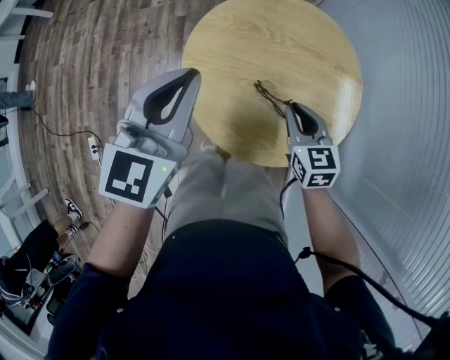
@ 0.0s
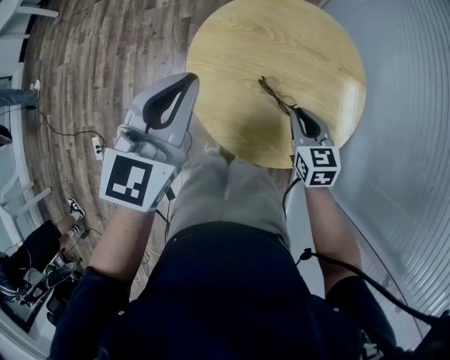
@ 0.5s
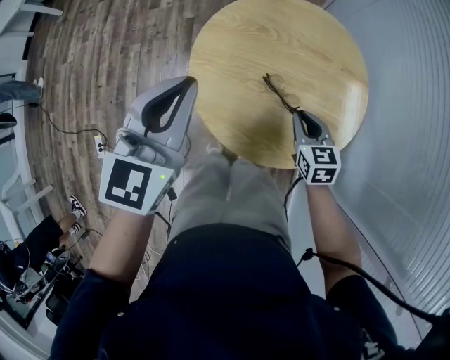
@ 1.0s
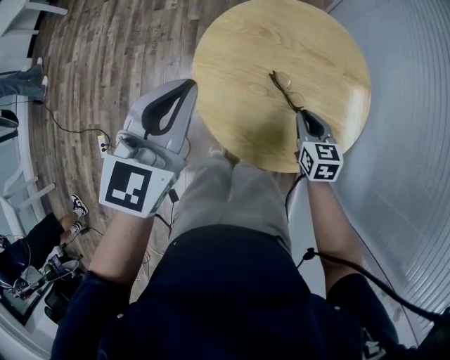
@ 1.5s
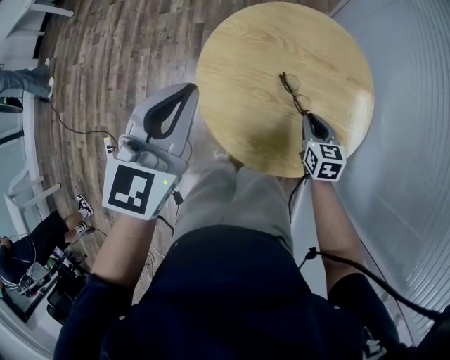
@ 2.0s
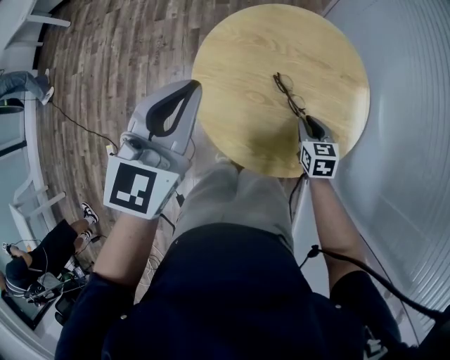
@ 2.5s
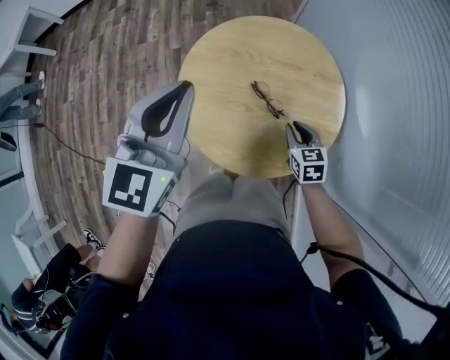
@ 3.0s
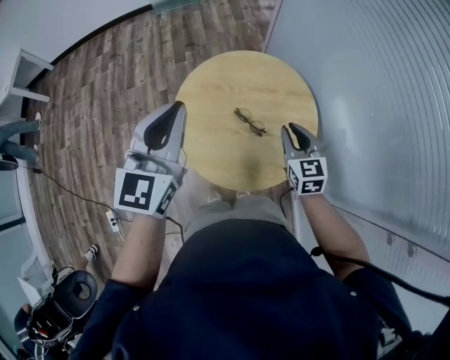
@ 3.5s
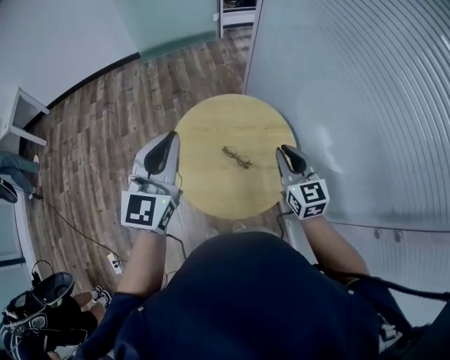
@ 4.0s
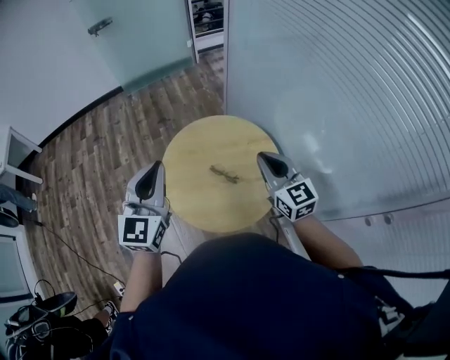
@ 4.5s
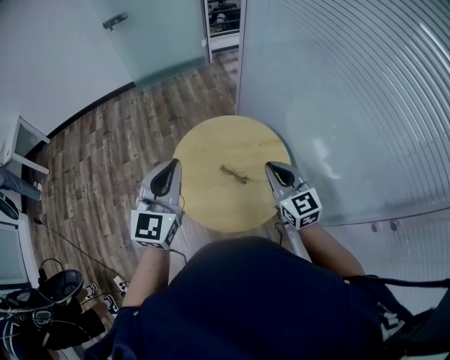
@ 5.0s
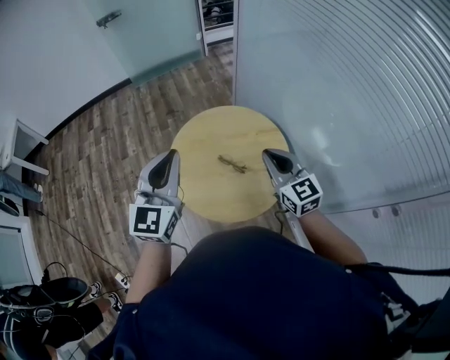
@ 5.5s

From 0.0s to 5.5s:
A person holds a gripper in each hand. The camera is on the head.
From 0.0s to 2.0s: The right gripper is displaced downward by about 15 cm.
From 2.0s to 3.5s: The left gripper shifts some 10 cm upward; the right gripper goes about 20 cm upward, and turns by approximately 20 degrees.
From 3.5s to 5.5s: The left gripper is displaced upward by about 5 cm; the right gripper is displaced upward by some 15 cm.

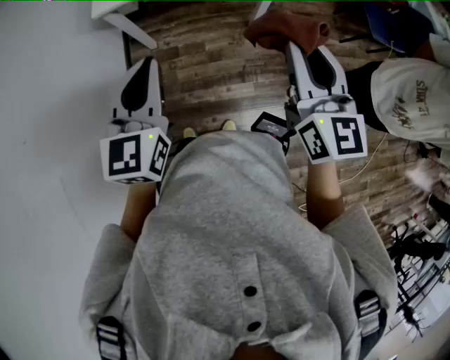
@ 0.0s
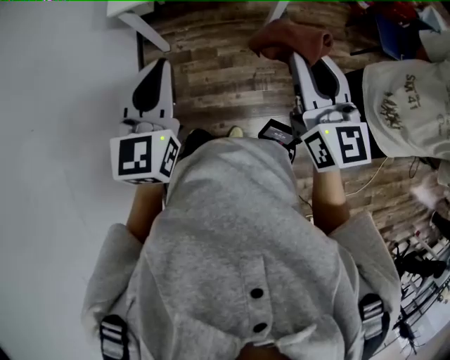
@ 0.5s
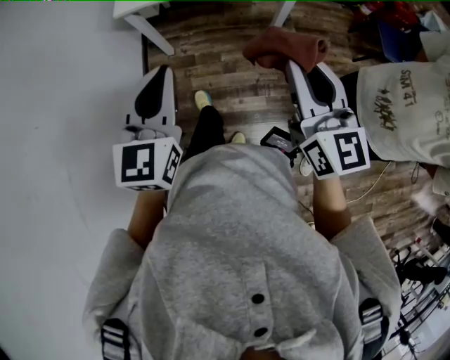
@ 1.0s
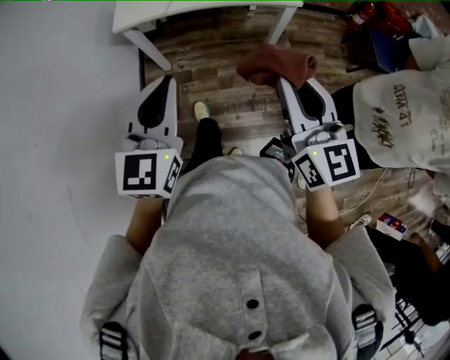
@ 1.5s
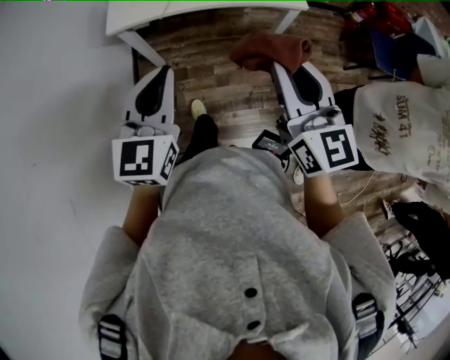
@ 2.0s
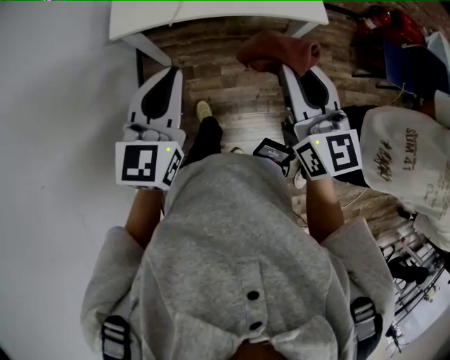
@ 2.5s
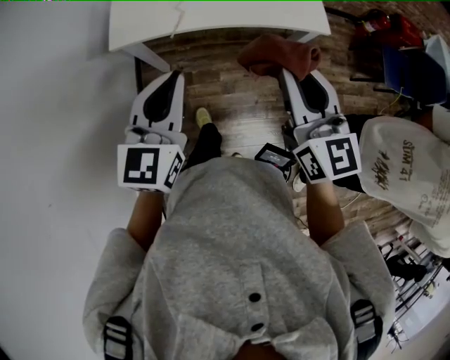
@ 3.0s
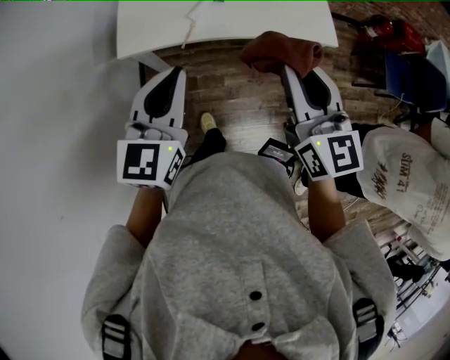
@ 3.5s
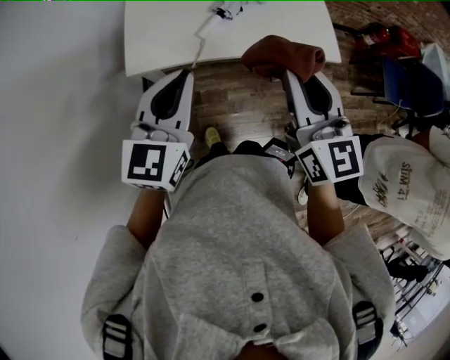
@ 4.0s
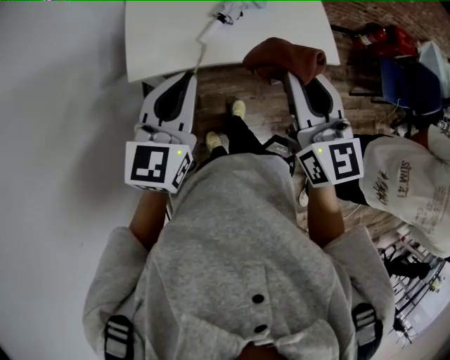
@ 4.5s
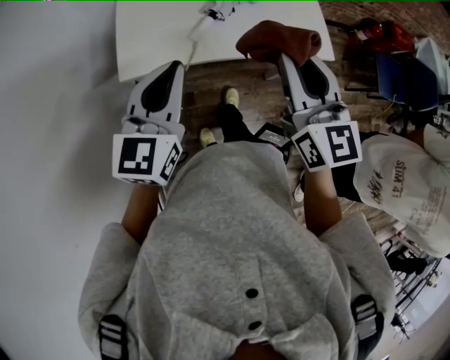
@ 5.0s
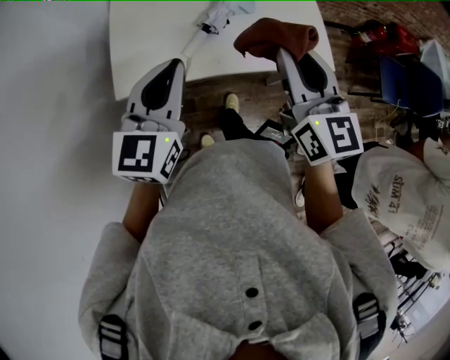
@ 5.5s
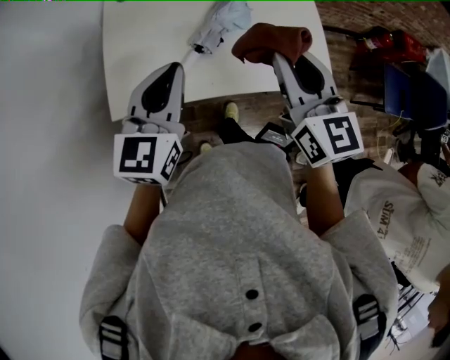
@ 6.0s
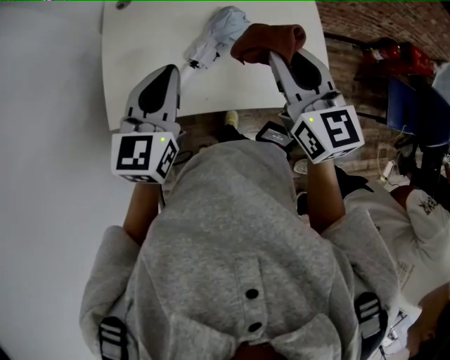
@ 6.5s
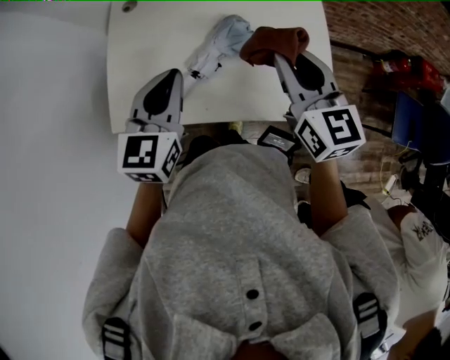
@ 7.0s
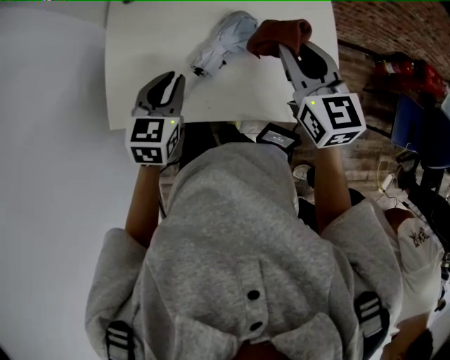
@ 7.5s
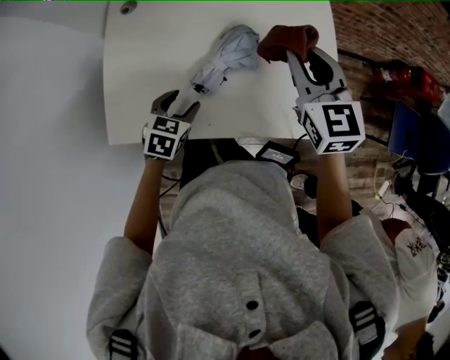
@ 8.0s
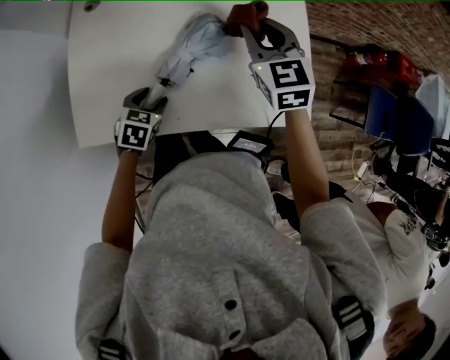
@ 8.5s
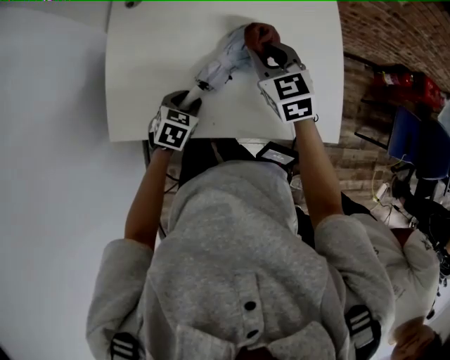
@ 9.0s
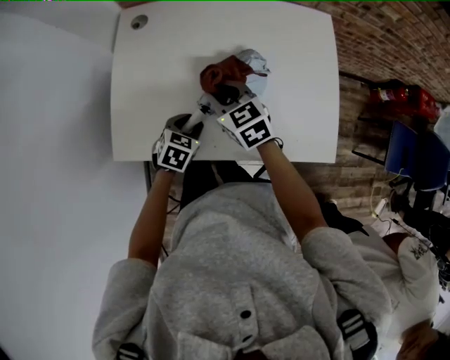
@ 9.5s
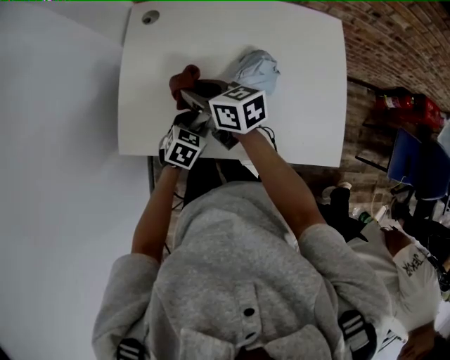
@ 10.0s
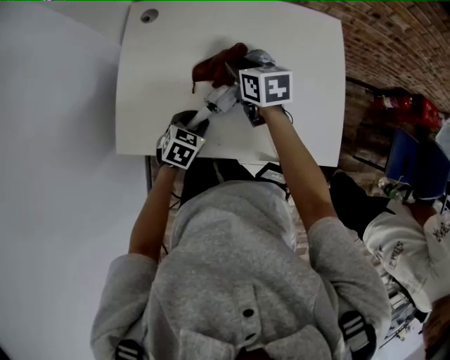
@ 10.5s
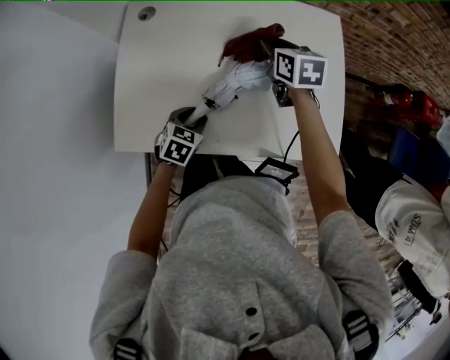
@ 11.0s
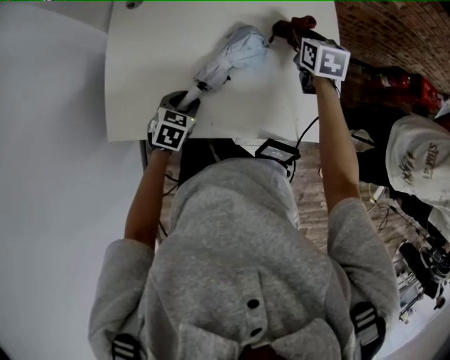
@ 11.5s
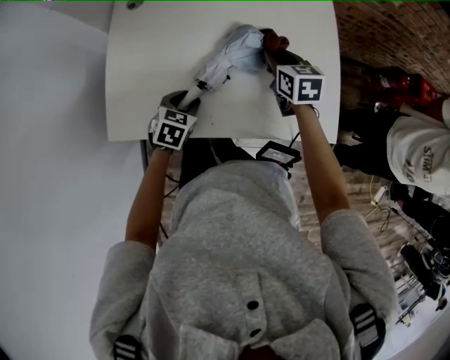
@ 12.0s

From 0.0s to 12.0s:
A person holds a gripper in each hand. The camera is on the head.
From 0.0s to 2.0s: The right gripper moves forward and to the left, approximately 10 cm. Meanwhile the left gripper shifts some 10 cm forward.
From 2.0s to 4.0s: The right gripper heads forward and to the left, covering some 30 cm, while the left gripper is displaced forward by some 25 cm.
From 4.0s to 6.0s: Both grippers move forward, some 20 cm.
From 6.0s to 8.0s: The right gripper is displaced forward and downward by about 20 cm. Meanwhile the left gripper shifts about 25 cm downward, angles its fingers downward, by some 40 degrees, and opens up.
From 8.0s to 10.0s: The right gripper heads to the left and downward, covering approximately 30 cm, and turns by roughly 50 degrees.
From 10.0s to 12.0s: The right gripper changes place by about 25 cm, and changes its angle by roughly 40 degrees.

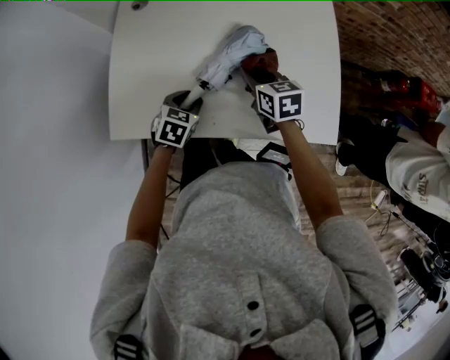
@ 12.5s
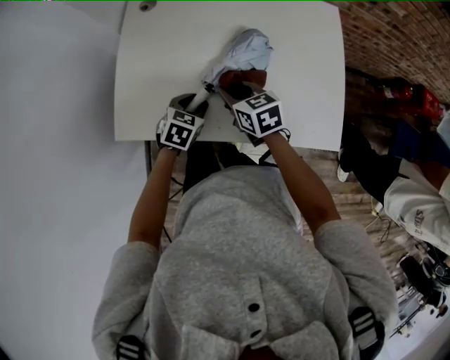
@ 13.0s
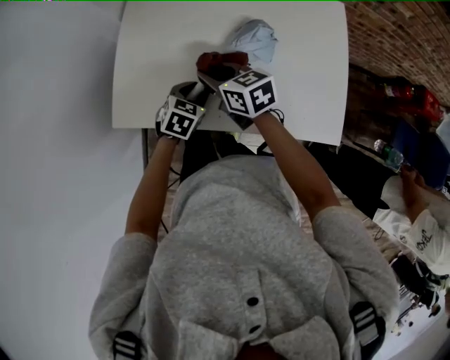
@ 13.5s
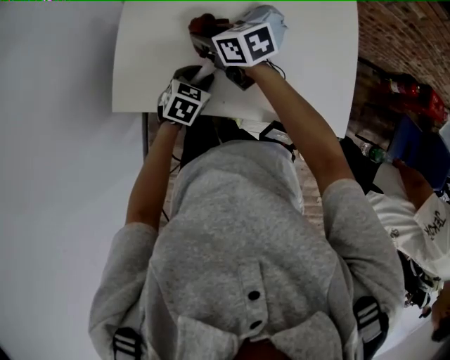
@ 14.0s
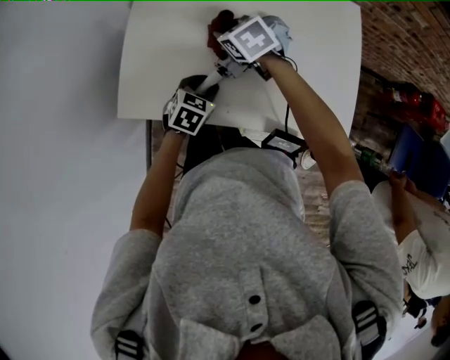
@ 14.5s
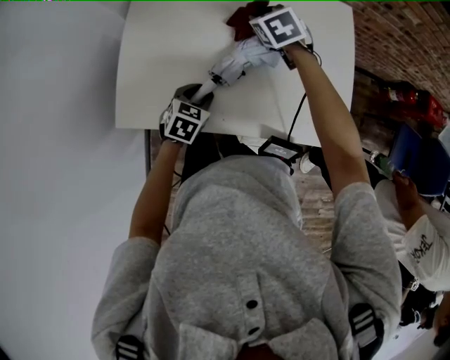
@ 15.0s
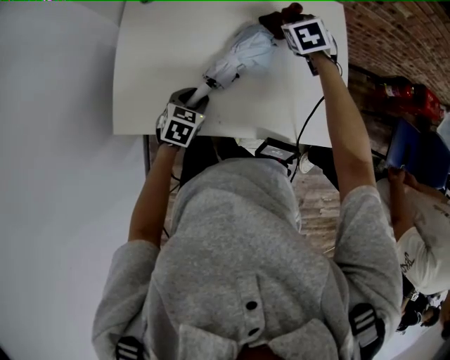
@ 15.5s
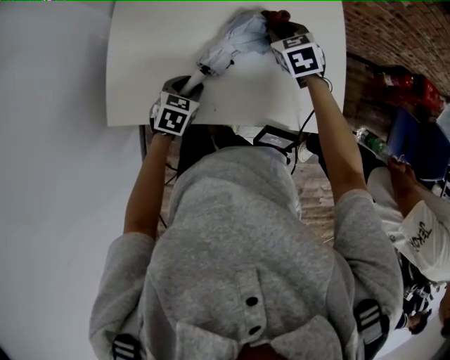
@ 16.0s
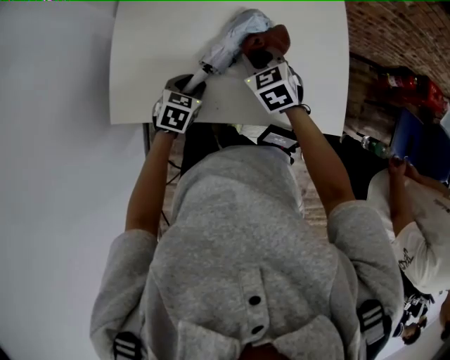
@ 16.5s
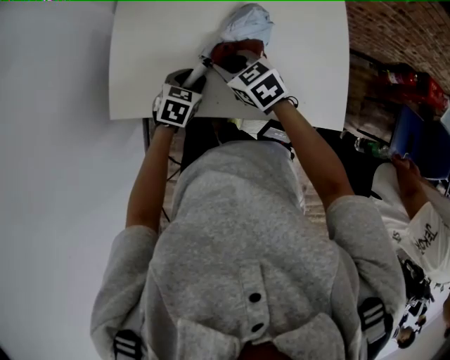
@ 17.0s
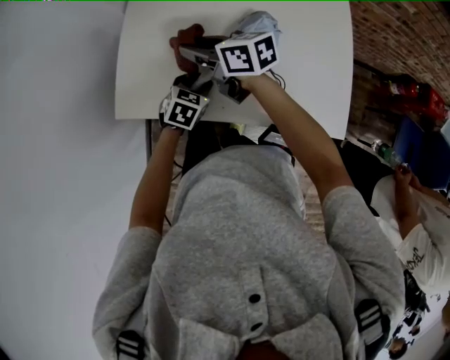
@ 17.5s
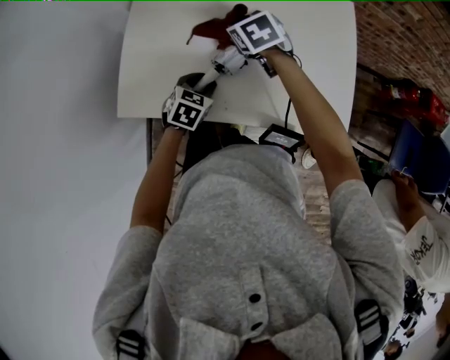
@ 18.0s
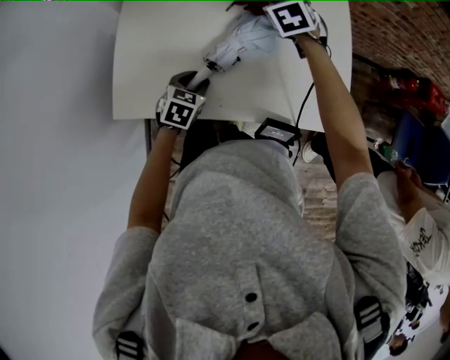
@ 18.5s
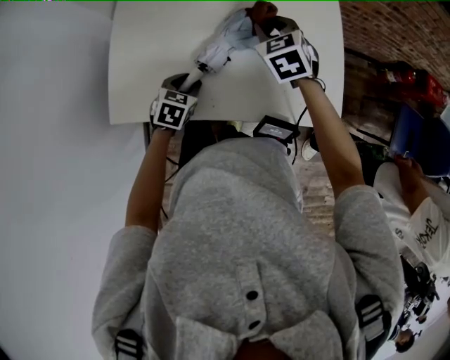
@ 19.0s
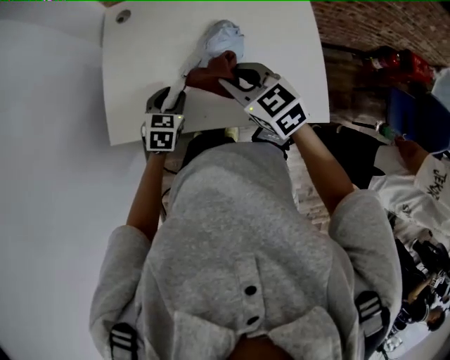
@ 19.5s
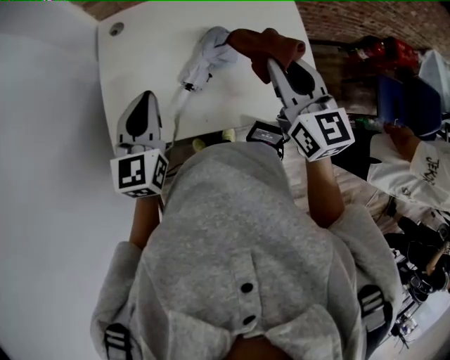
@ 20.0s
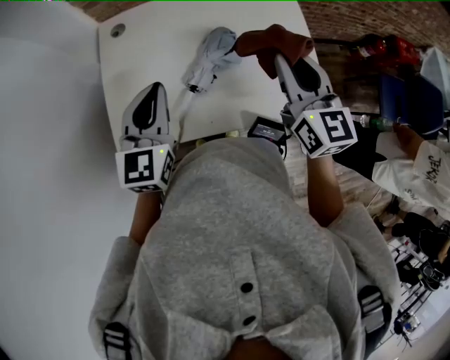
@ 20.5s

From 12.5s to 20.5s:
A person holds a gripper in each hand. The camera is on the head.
From 12.5s to 14.5s: The right gripper goes roughly 15 cm to the left and forward, and changes its angle by approximately 30 degrees.
From 14.5s to 16.5s: The right gripper heads to the right and backward, covering approximately 15 cm.
From 16.5s to 18.5s: The right gripper shifts by some 15 cm.
From 18.5s to 20.5s: The right gripper heads backward and upward, covering roughly 30 cm, and tilts its fingers roughly 40 degrees upward, while the left gripper heads upward, covering some 30 cm, tips its fingers upward by roughly 40 degrees, and closes its fingers.

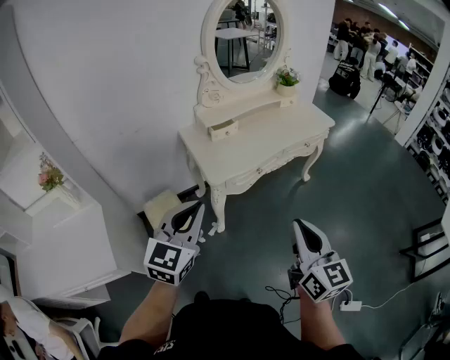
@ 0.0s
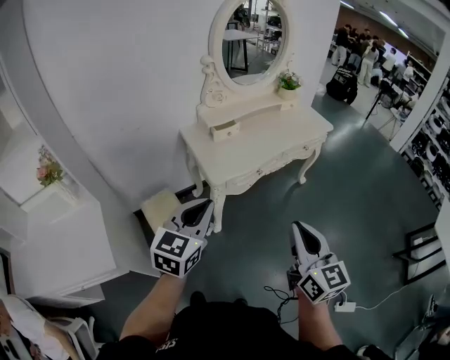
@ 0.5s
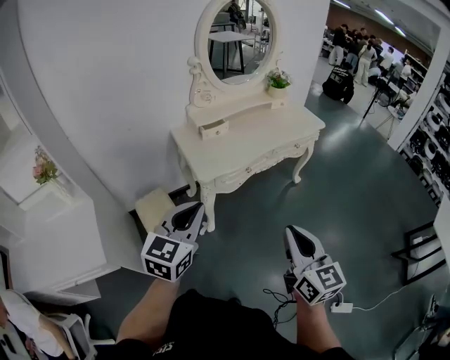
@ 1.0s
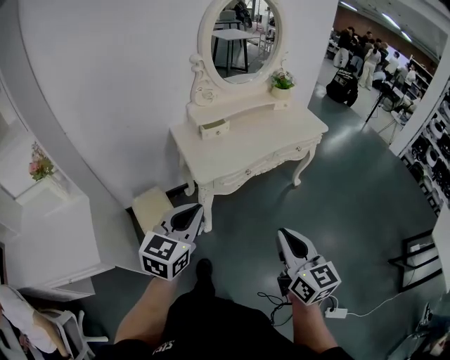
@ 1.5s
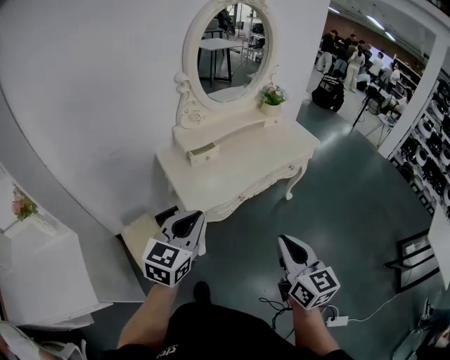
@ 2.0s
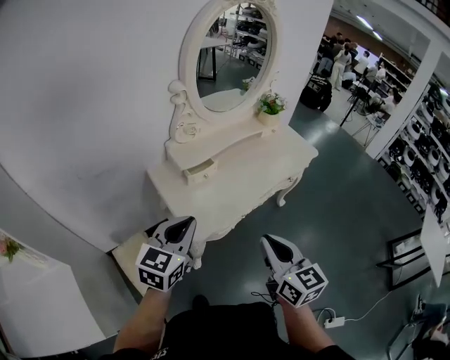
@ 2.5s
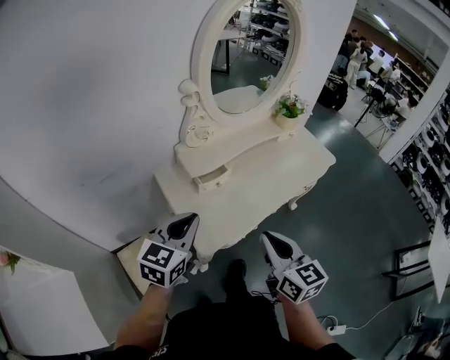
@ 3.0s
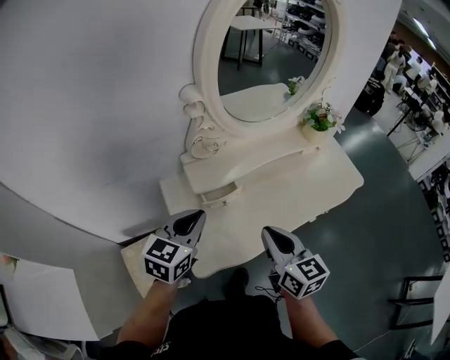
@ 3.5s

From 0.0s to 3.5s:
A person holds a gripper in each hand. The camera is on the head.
From 0.0s to 2.0s: Both grippers move forward, roughly 10 cm.
From 2.0s to 3.5s: Both grippers travel together forward, about 35 cm.
